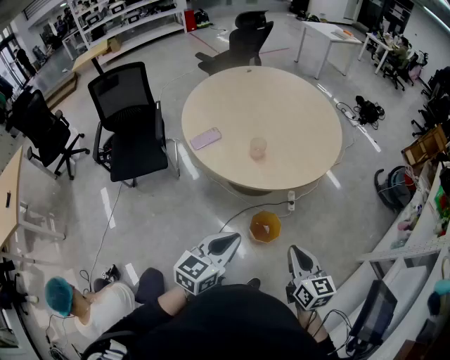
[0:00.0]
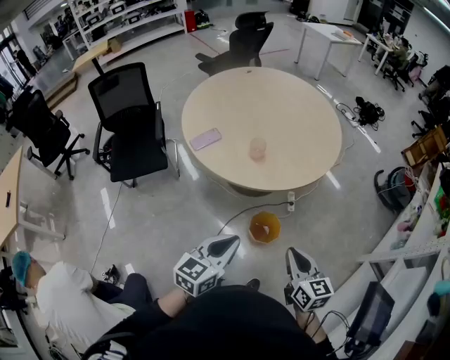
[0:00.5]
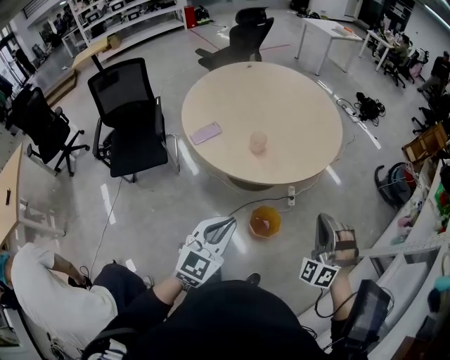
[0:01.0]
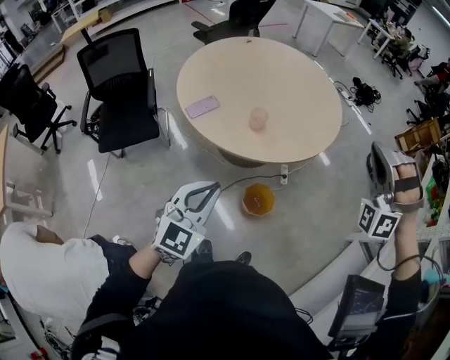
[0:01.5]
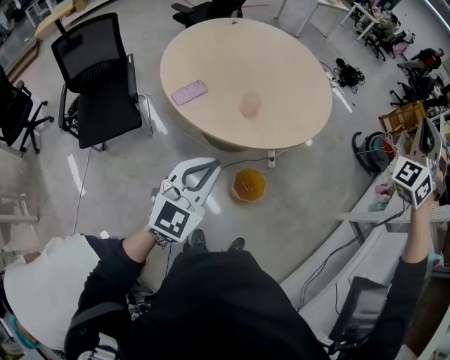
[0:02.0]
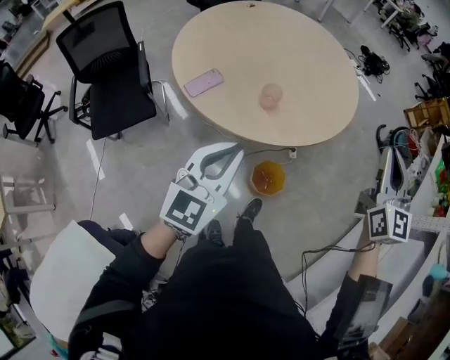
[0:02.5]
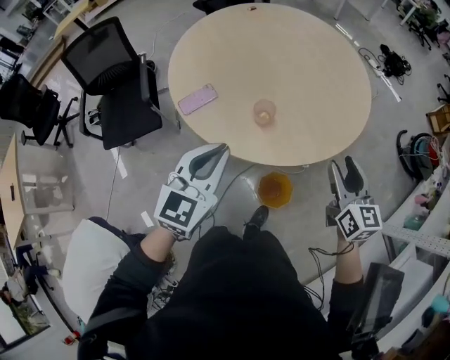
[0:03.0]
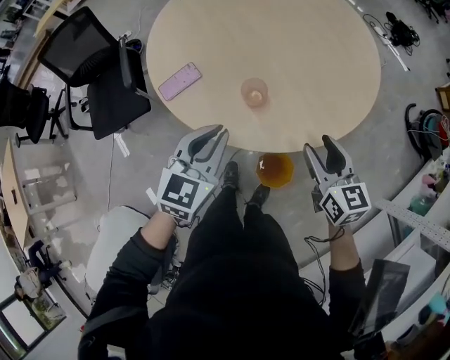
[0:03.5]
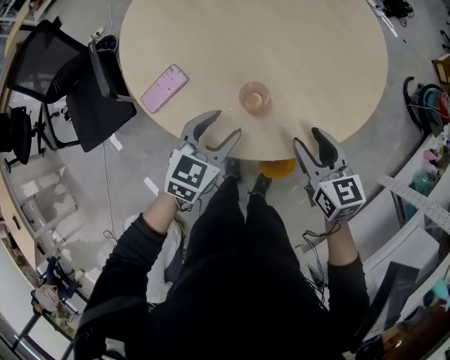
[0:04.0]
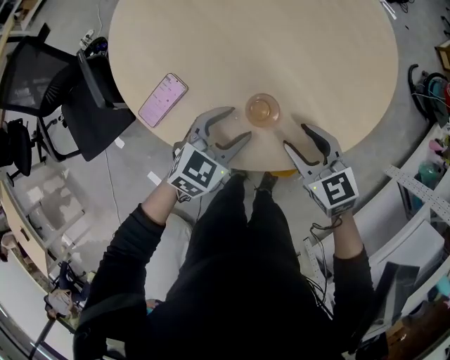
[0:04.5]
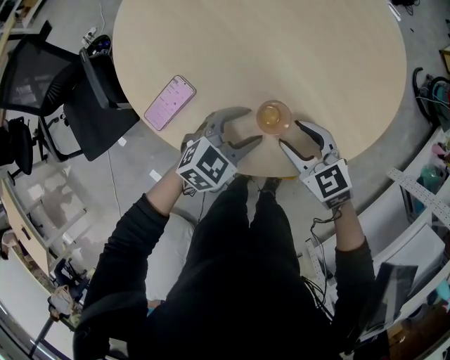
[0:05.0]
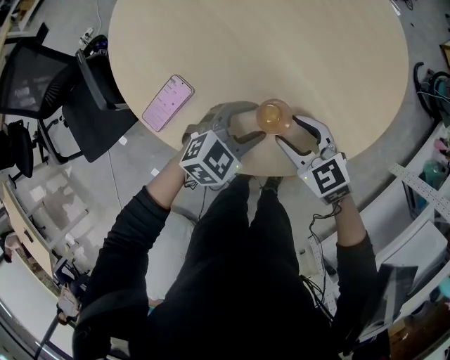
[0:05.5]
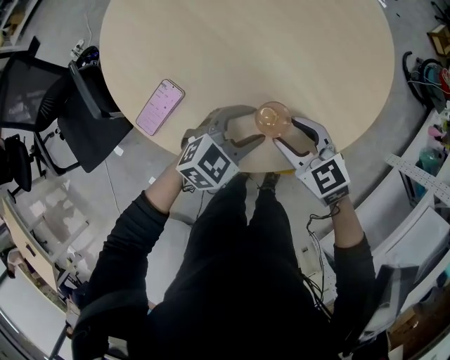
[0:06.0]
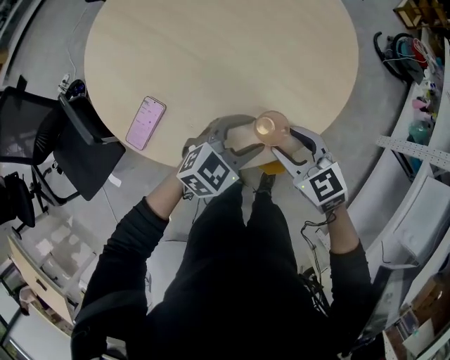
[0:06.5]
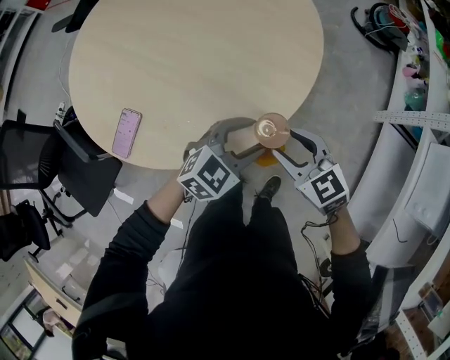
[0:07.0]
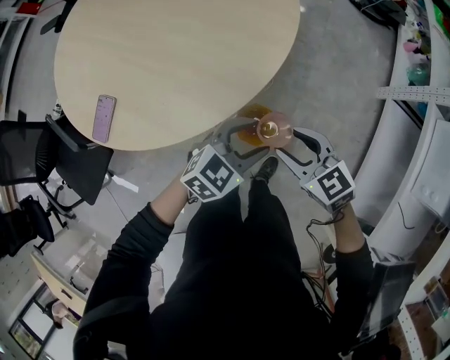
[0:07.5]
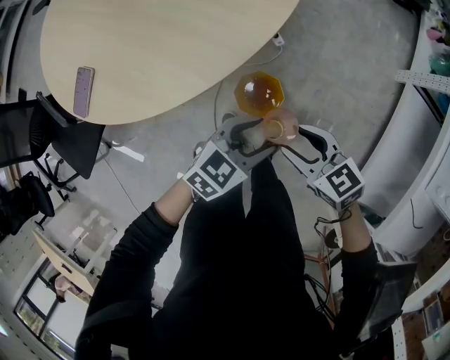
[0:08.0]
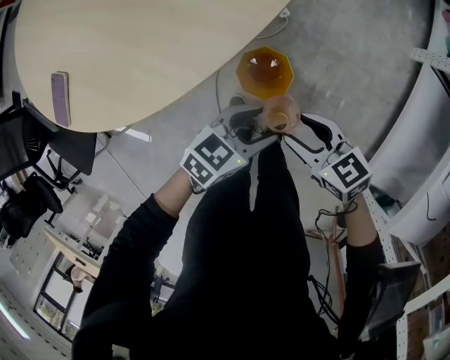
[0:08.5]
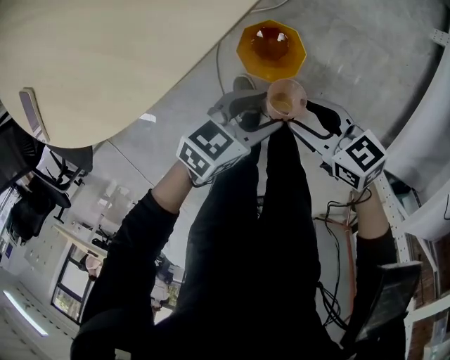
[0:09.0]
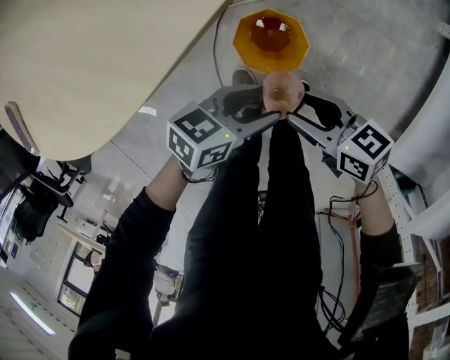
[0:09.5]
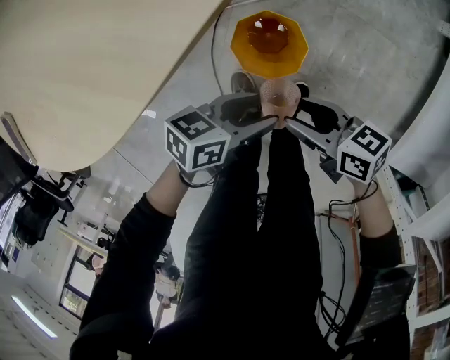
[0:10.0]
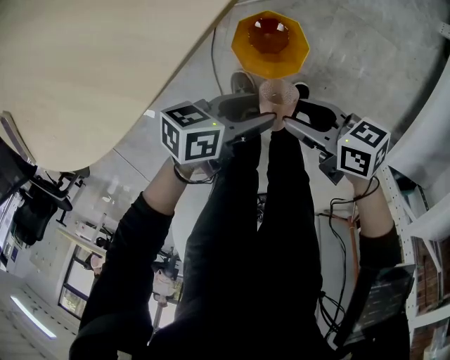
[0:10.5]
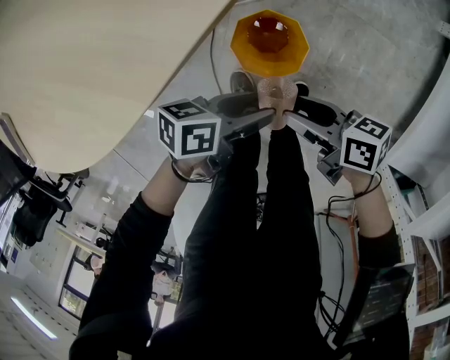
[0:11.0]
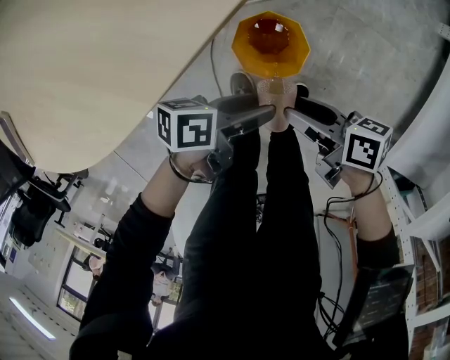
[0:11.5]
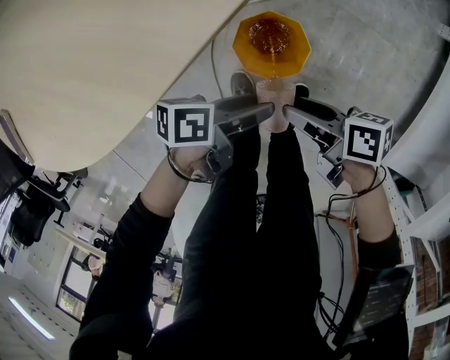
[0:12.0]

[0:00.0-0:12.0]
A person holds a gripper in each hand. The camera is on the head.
0.0 to 2.0 s: The right gripper moves upward and forward, some 40 cm, and rolls counterclockwise, seen from behind, by about 90 degrees. Meanwhile the left gripper travels to the left and forward by approximately 15 cm, and rotates roughly 30 degrees.
2.0 to 4.0 s: The right gripper moves downward, some 50 cm, tips its fingers downward by roughly 30 degrees, and opens up; the left gripper changes place by about 40 cm, rotates some 30 degrees, and opens up.
4.0 to 6.0 s: The left gripper travels downward by some 5 cm, and changes its angle by about 30 degrees. Meanwhile the right gripper moves to the left and downward, about 10 cm, and rotates about 20 degrees.
6.0 to 8.0 s: The right gripper shifts by about 35 cm, and turns by some 30 degrees. Meanwhile the left gripper changes place by some 35 cm, and turns by roughly 20 degrees.
8.0 to 10.0 s: The grippers both shift downward by about 25 cm. The left gripper turns by approximately 40 degrees; the right gripper changes its angle by approximately 40 degrees.
10.0 to 12.0 s: The right gripper rotates some 30 degrees. The left gripper swivels approximately 30 degrees.

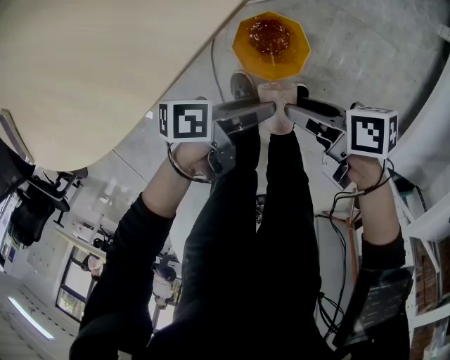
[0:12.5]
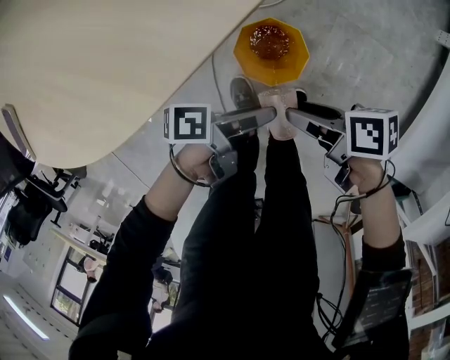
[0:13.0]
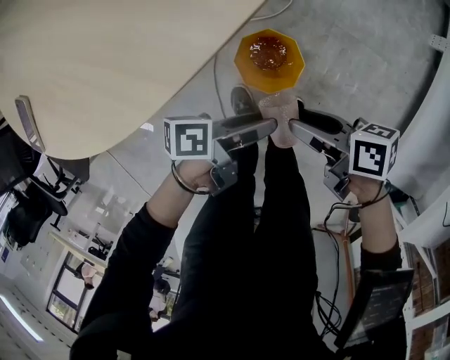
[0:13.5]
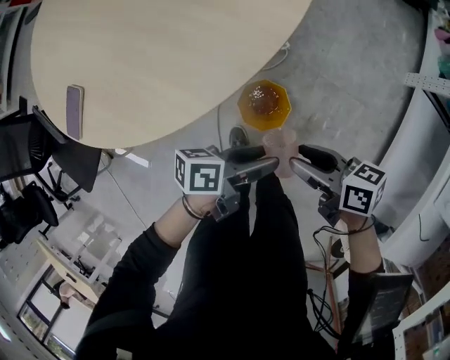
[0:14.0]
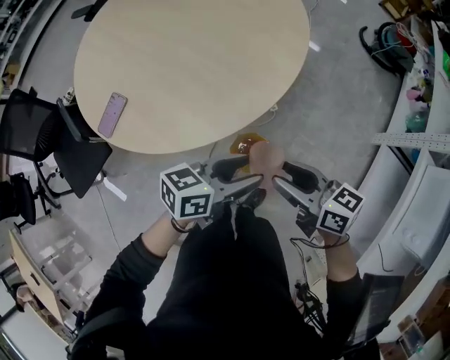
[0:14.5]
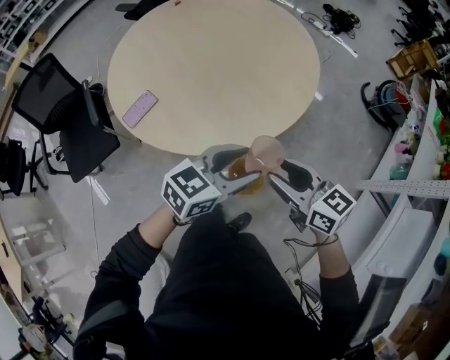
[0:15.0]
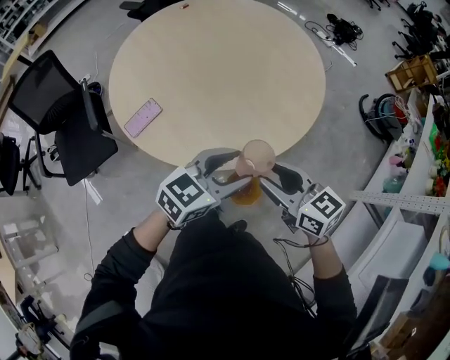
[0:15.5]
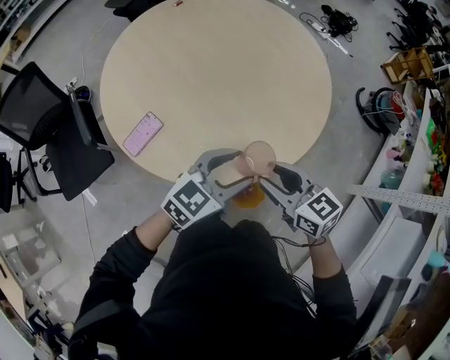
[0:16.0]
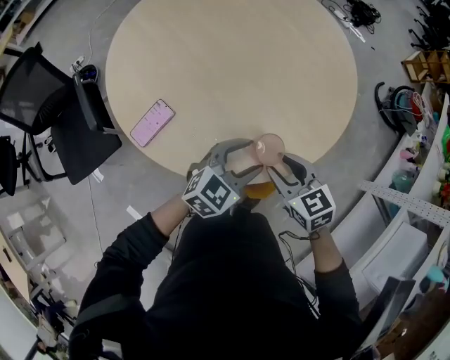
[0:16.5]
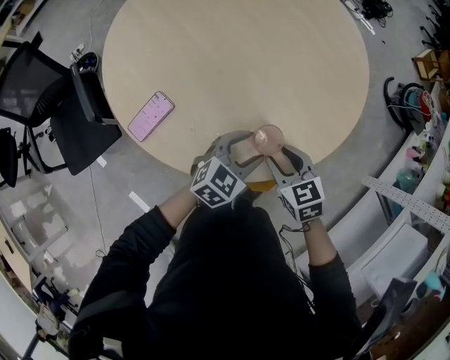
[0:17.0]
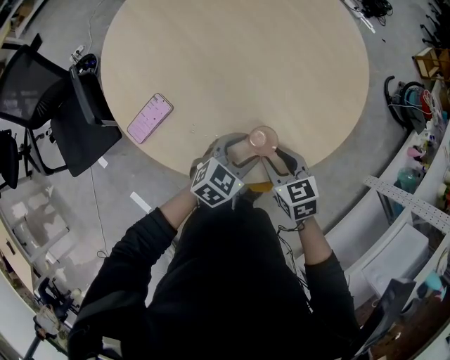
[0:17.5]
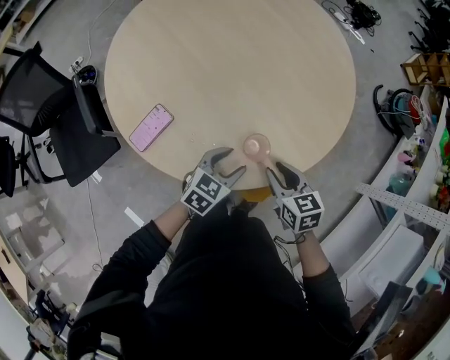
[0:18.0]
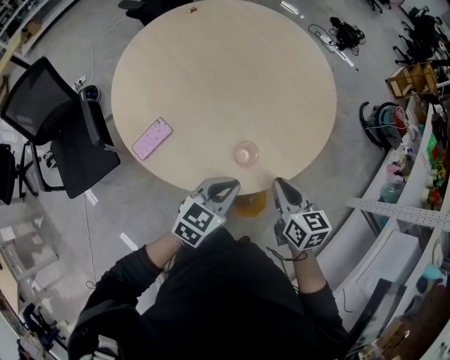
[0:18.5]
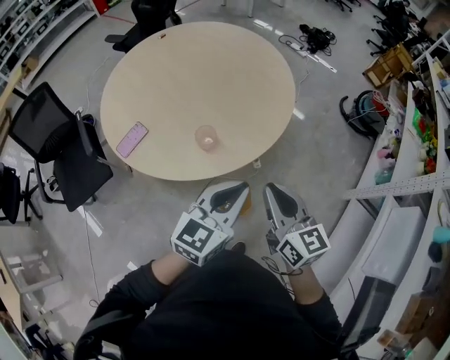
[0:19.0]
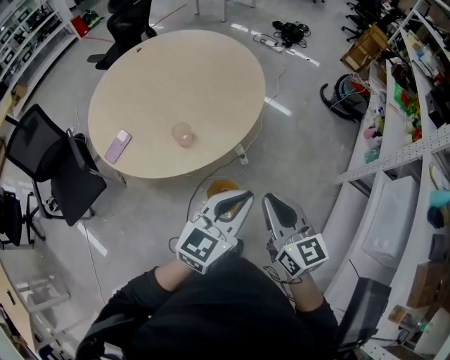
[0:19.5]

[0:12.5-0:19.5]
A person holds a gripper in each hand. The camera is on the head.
12.5 to 14.5 s: Both grippers travel together upward, approximately 40 cm. The left gripper twists approximately 50 degrees clockwise, seen from behind. The right gripper rolls counterclockwise, seen from behind, by approximately 50 degrees.
14.5 to 16.0 s: Both grippers travel together to the left, forward and upward, roughly 20 cm. The right gripper turns by about 30 degrees; the left gripper swivels roughly 40 degrees.
16.0 to 17.5 s: Both grippers travel together downward, some 15 cm. The right gripper swivels approximately 20 degrees.
17.5 to 19.5 s: The grippers both shift upward, backward and to the right by about 40 cm. The left gripper rotates approximately 30 degrees, and closes. The right gripper tips its fingers upward by some 30 degrees, and closes its fingers.

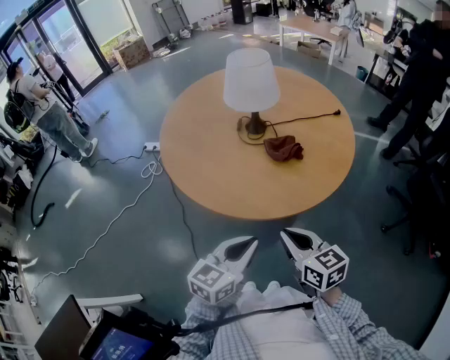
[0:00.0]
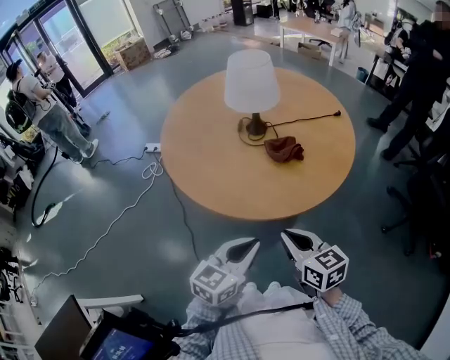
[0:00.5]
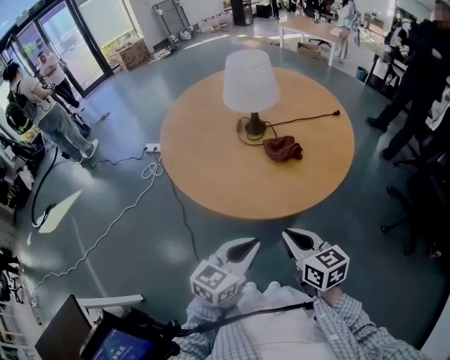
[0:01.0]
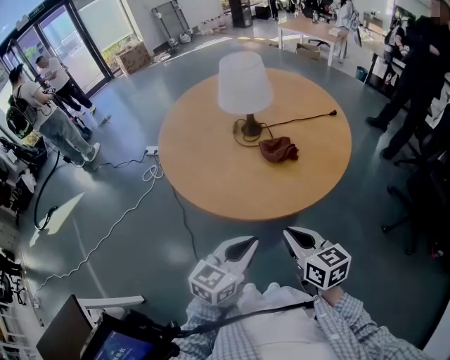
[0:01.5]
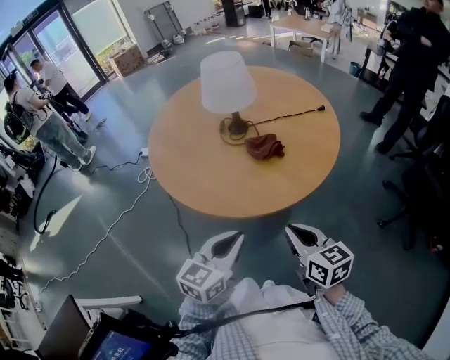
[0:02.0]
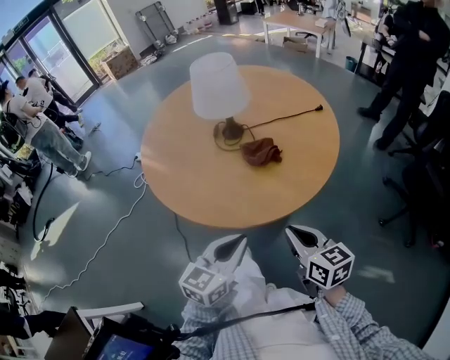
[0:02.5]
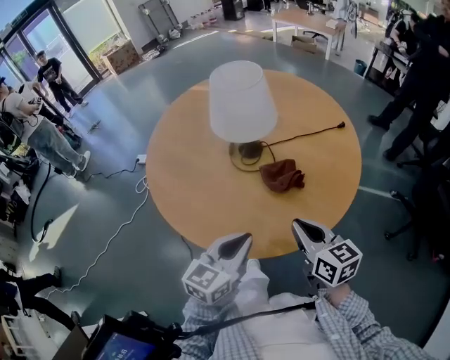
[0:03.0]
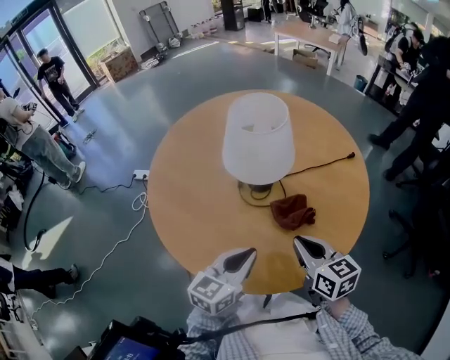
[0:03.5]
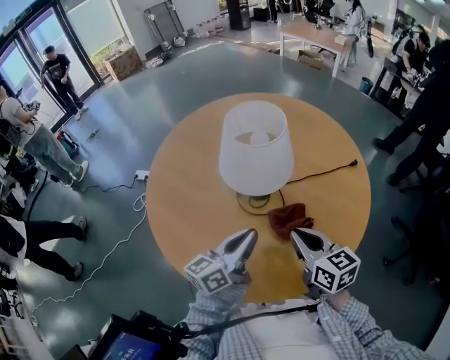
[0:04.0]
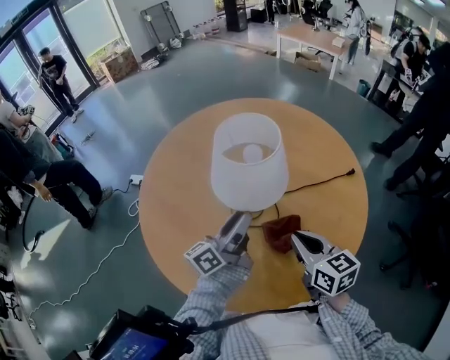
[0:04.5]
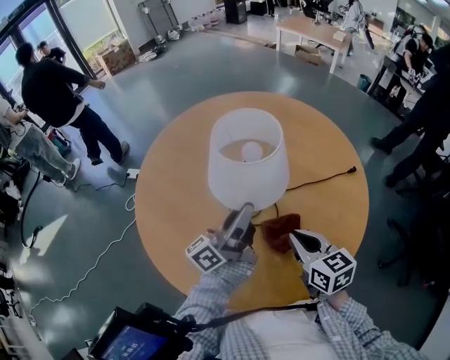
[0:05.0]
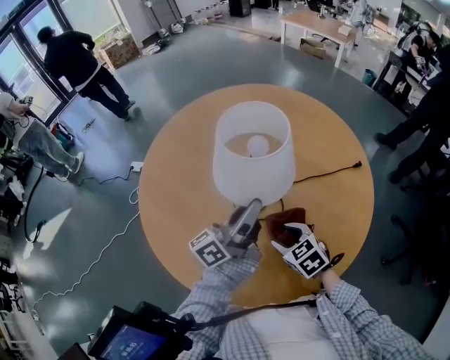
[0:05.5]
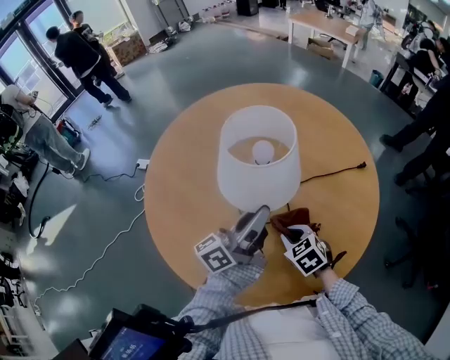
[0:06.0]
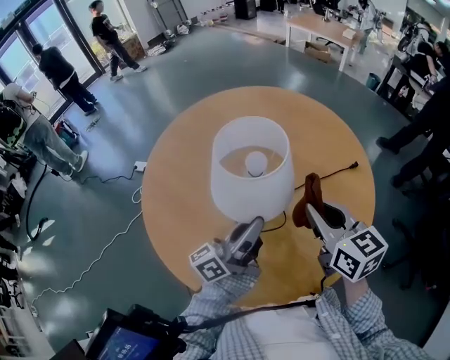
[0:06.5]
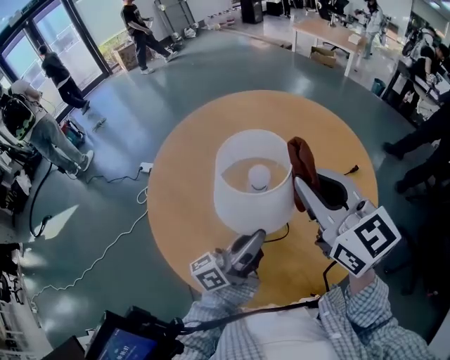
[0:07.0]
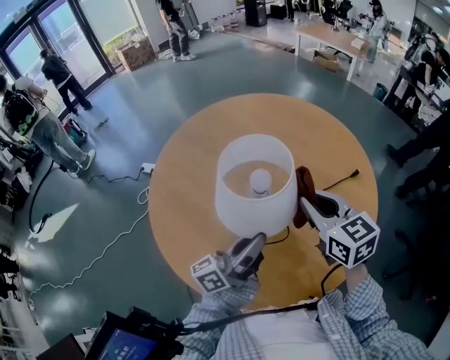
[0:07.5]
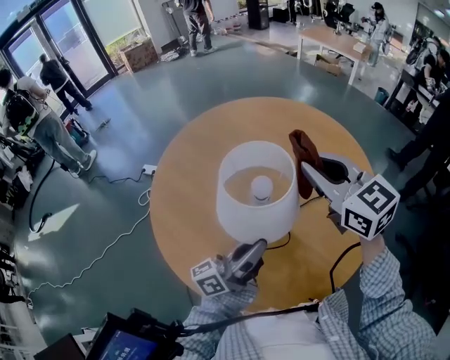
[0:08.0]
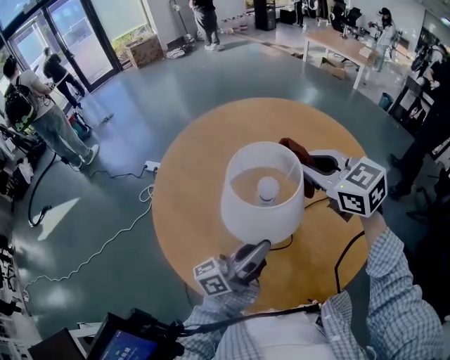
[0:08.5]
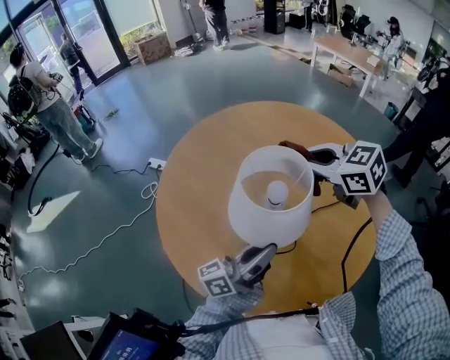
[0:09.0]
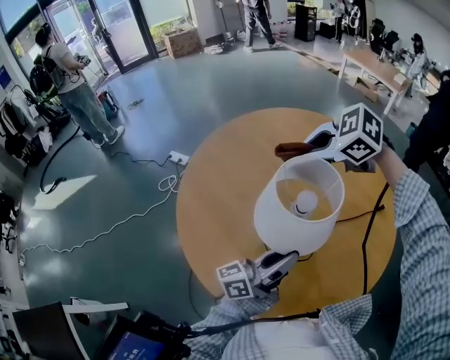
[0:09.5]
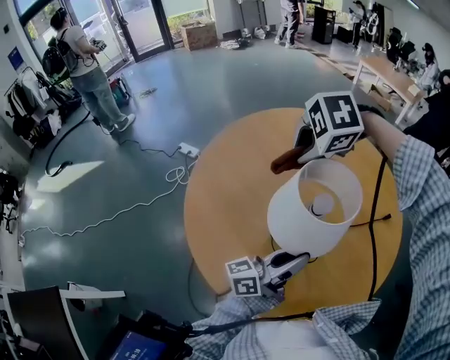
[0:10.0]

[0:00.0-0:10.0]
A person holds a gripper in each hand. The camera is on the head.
0.0 to 2.0 s: The right gripper shifts approximately 10 cm to the right.
2.0 to 4.0 s: Both grippers move forward, roughly 30 cm. The left gripper changes its angle by approximately 30 degrees.
4.0 to 6.0 s: The left gripper heads forward, covering some 5 cm, turns by some 20 degrees, and opens. The right gripper goes some 15 cm downward, points its fingers some 30 degrees further downward, and opens, then closes again.
6.0 to 8.0 s: The right gripper goes up and down, roughly 35 cm each way, reversing 2 times, and tilts its fingers some 40 degrees upward. Meanwhile the left gripper shifts some 5 cm backward.
8.0 to 10.0 s: The right gripper changes place by about 20 cm, and angles its fingers downward, by roughly 70 degrees.
